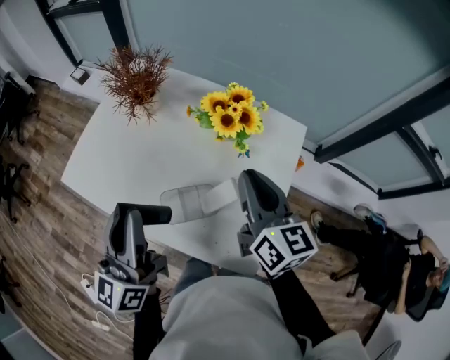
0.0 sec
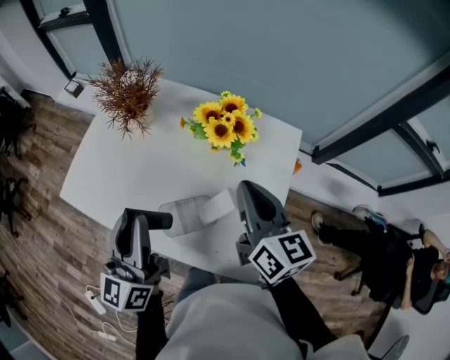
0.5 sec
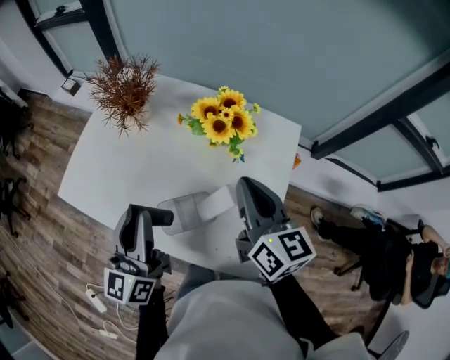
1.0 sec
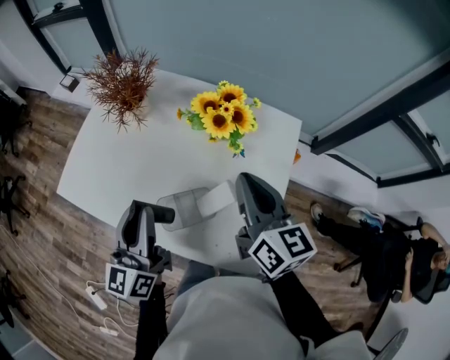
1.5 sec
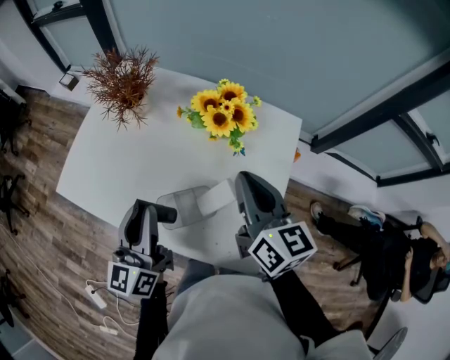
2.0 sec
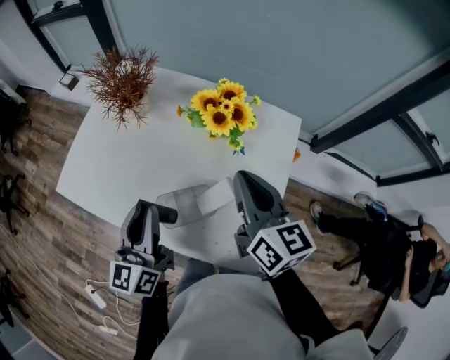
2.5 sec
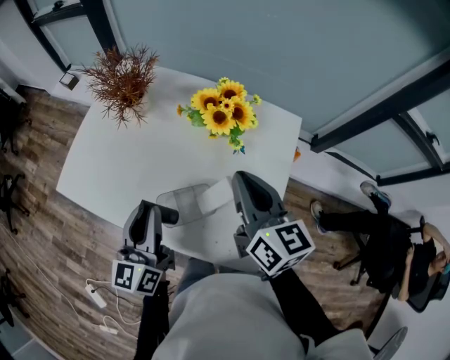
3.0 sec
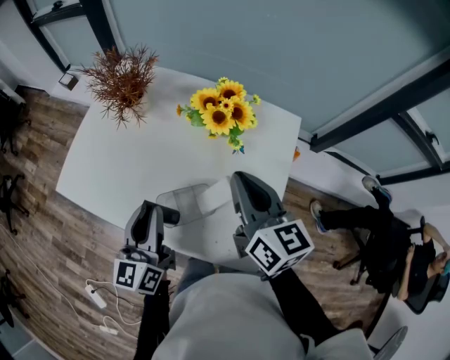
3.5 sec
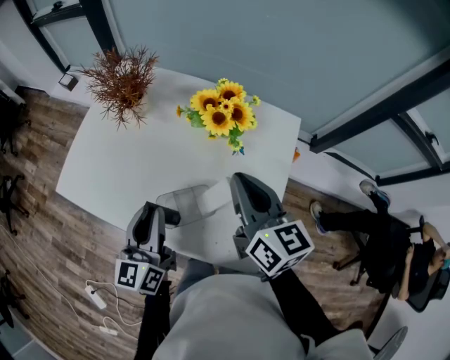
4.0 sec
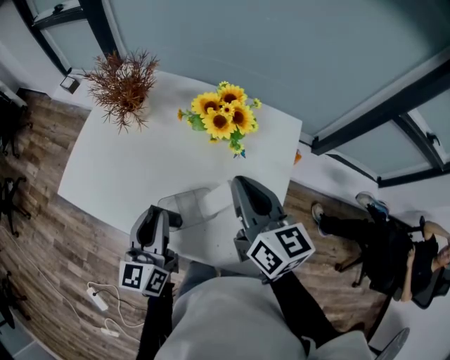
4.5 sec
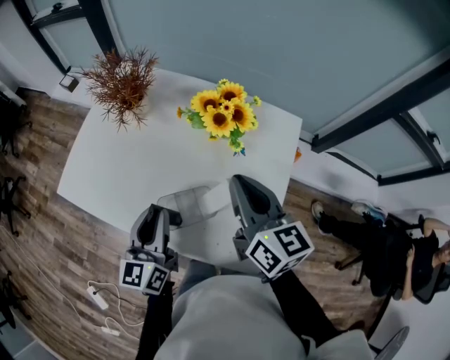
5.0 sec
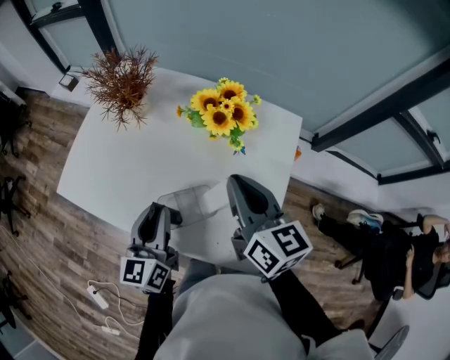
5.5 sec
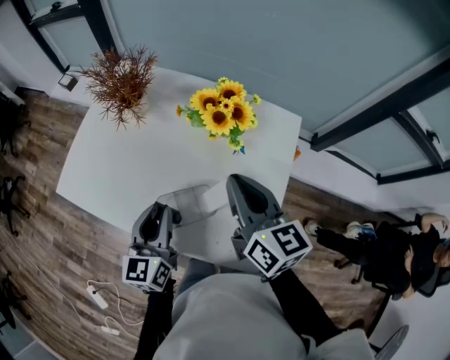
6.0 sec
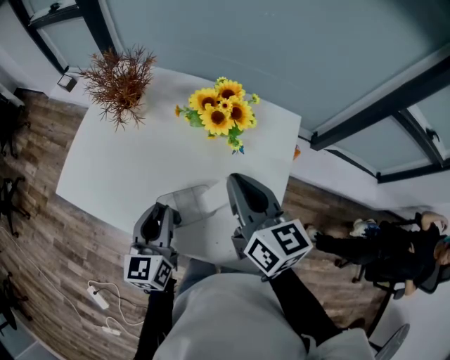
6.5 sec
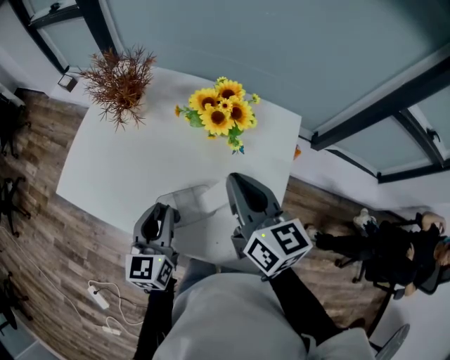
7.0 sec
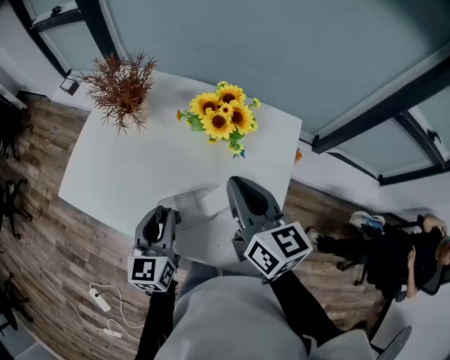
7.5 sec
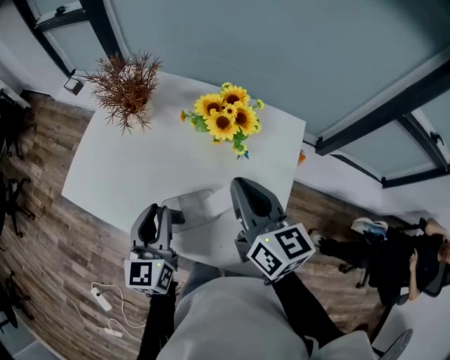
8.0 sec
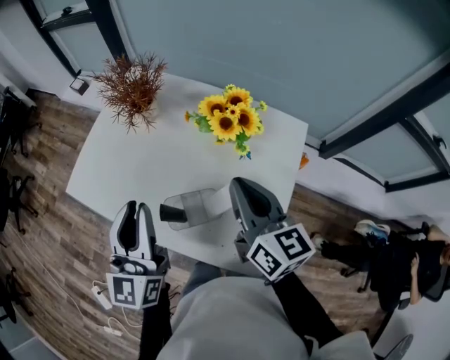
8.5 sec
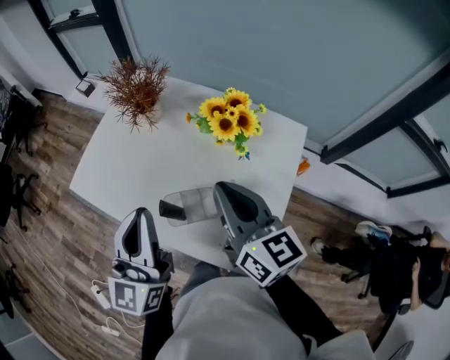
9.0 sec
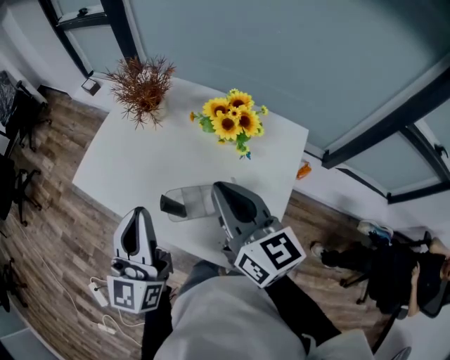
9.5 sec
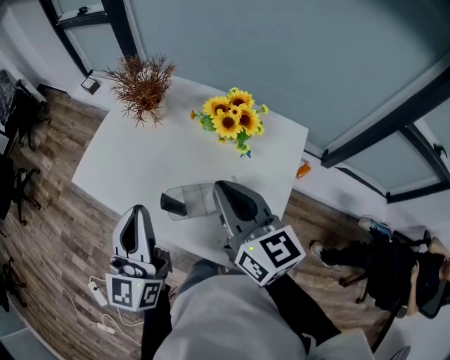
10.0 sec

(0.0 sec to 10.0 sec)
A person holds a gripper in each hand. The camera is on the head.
0.0 sec - 2.0 sec: The left gripper shifts roughly 10 cm downward.
2.0 sec - 4.0 sec: The grippers move only a little.
4.0 sec - 8.0 sec: The grippers stay close to where they were, moving slightly.
8.0 sec - 10.0 sec: The left gripper is displaced upward by some 15 cm, and turns by about 20 degrees; the right gripper shifts by some 5 cm.

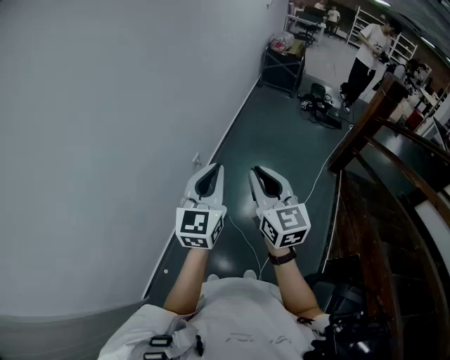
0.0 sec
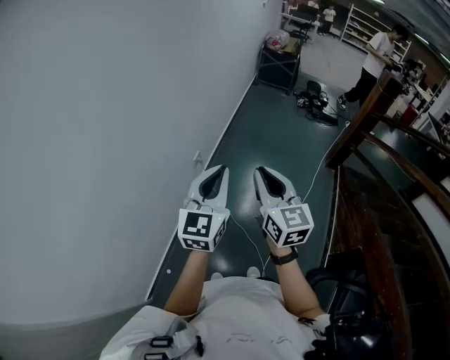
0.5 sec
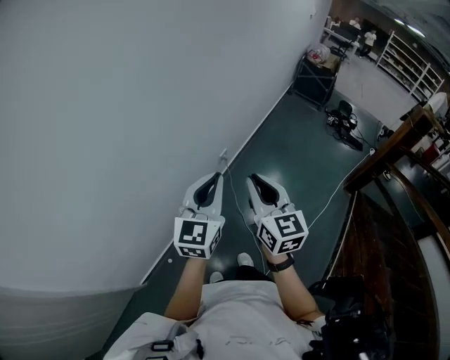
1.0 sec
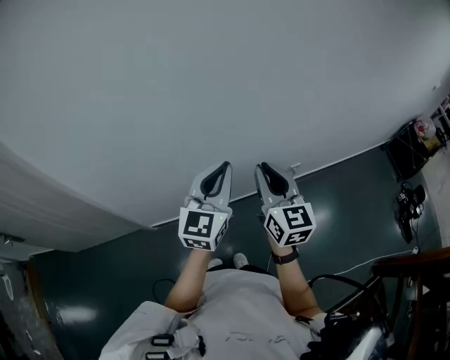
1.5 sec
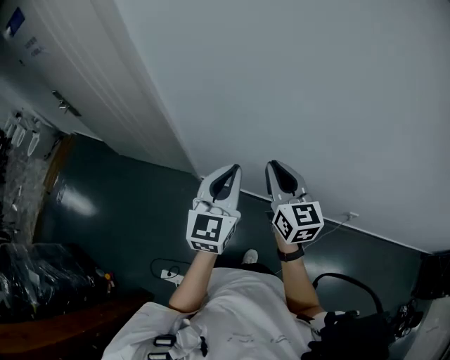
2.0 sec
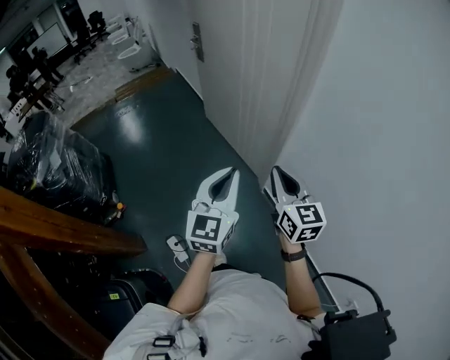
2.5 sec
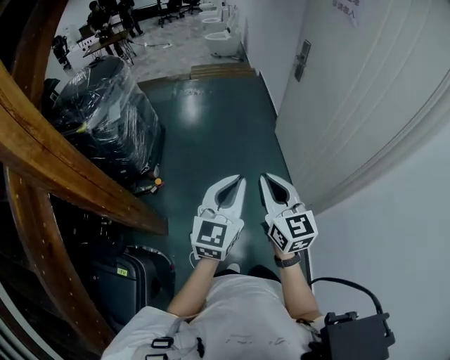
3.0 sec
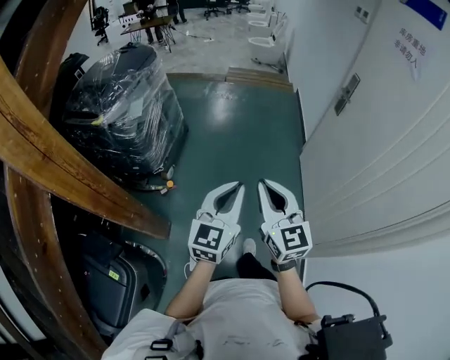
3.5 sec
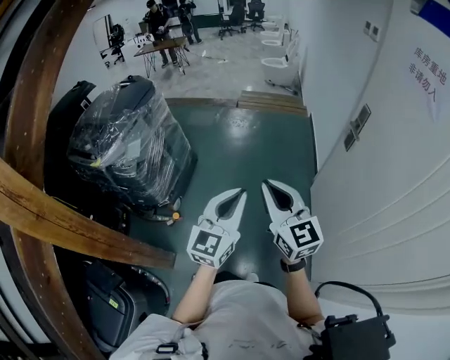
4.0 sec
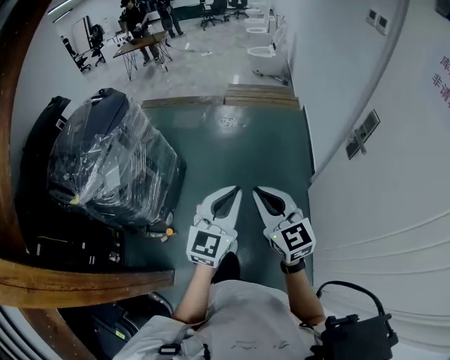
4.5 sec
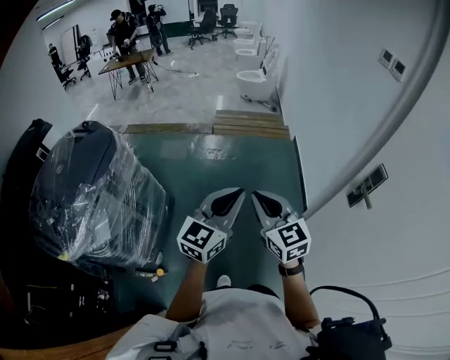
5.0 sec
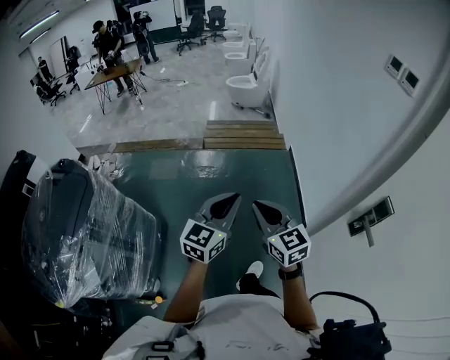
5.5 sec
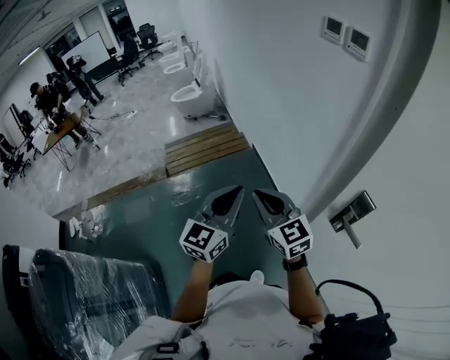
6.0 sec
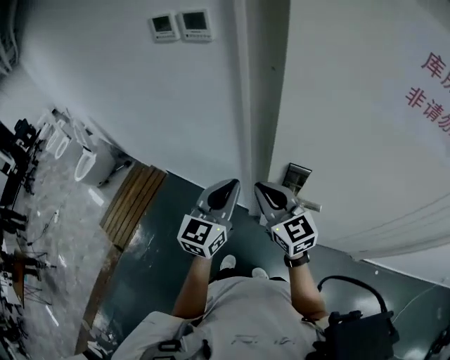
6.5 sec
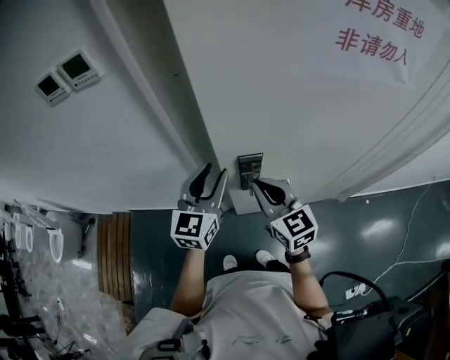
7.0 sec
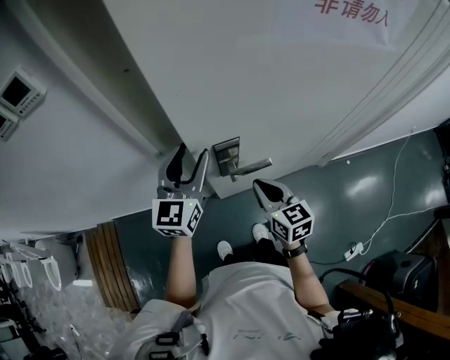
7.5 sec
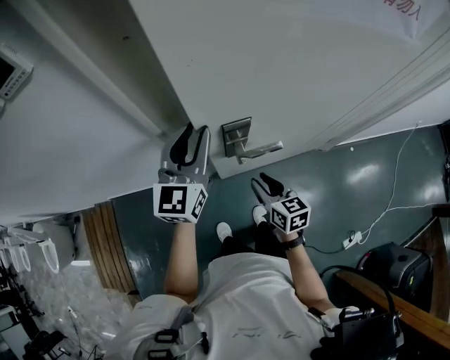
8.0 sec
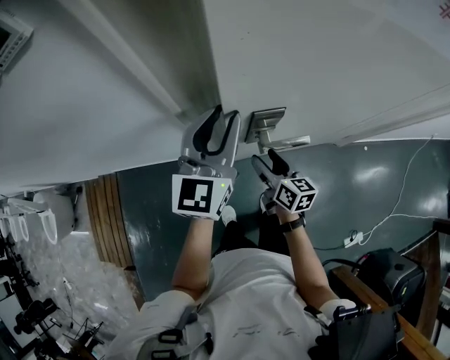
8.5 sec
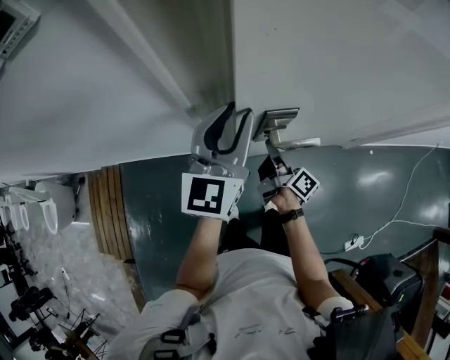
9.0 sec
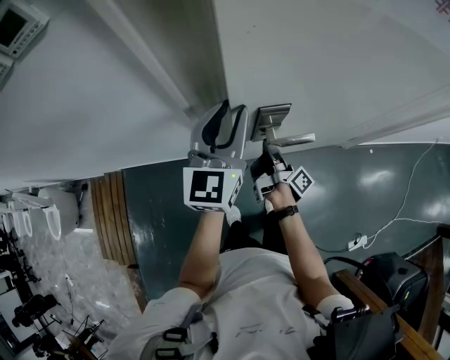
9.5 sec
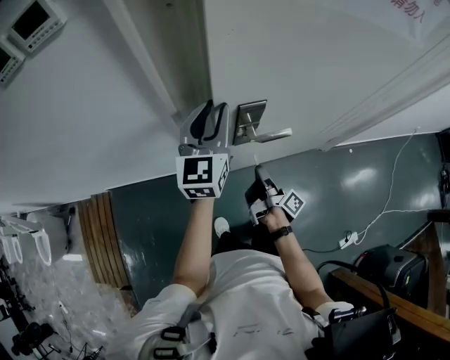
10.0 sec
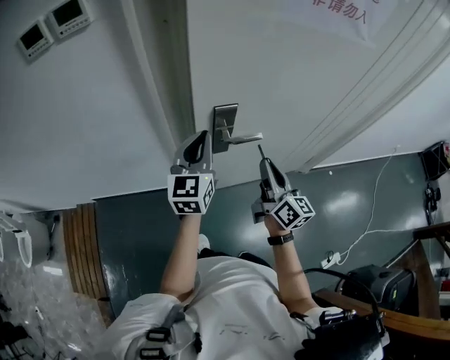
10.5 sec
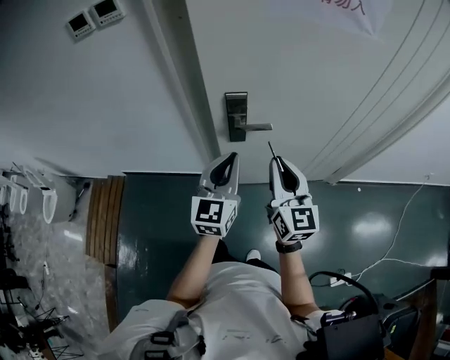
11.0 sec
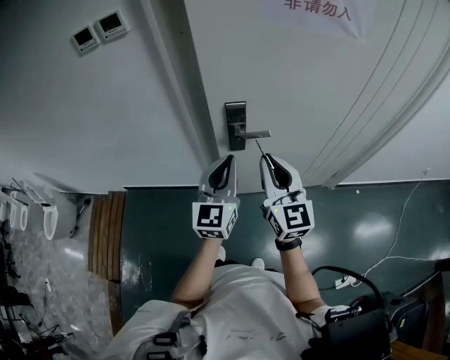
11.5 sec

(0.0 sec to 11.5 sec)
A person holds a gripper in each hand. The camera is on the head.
0.0 sec - 2.0 sec: The pair of grippers is taken roughly 40 cm. The left gripper swivels approximately 80 degrees. Meanwhile the right gripper swivels about 80 degrees.
2.0 sec - 4.0 sec: Both grippers are carried some 90 cm. The right gripper rotates approximately 90 degrees. Meanwhile the left gripper changes its angle by approximately 70 degrees.
4.0 sec - 6.0 sec: The two grippers travel together, some 70 cm. The left gripper swivels roughly 30 degrees. The right gripper swivels approximately 30 degrees.
6.0 sec - 7.5 sec: The left gripper ends up roughly 40 cm from where it was, changes its angle by about 60 degrees, and opens, while the right gripper shifts by about 35 cm, and turns by roughly 90 degrees.
7.5 sec - 9.5 sec: The right gripper travels downward and forward by about 15 cm, rotates around the line of its fingers by some 80 degrees, clockwise from behind, and opens, then closes again, while the left gripper closes.
9.5 sec - 11.5 sec: The right gripper shifts roughly 35 cm upward and backward, and rotates around the line of its fingers by roughly 100 degrees, counterclockwise from behind; the left gripper moves backward and to the right, about 25 cm, and closes up.

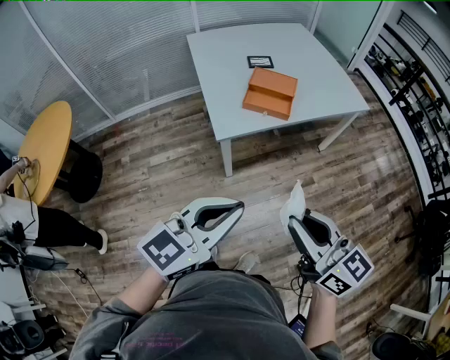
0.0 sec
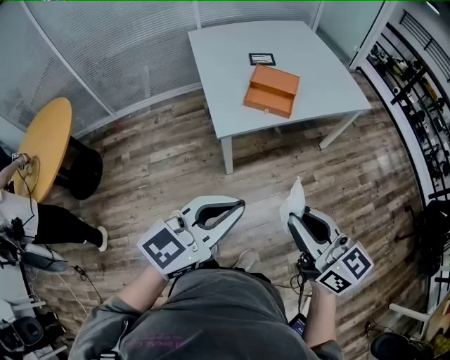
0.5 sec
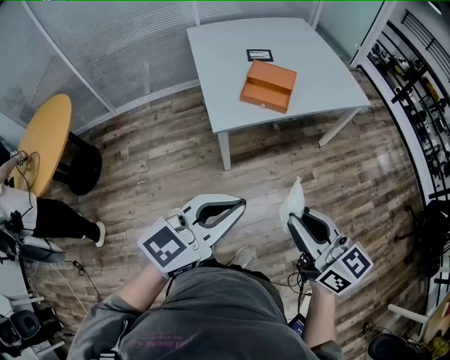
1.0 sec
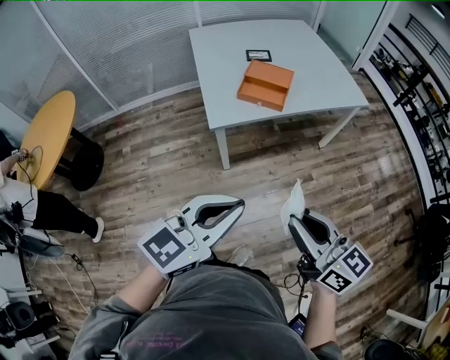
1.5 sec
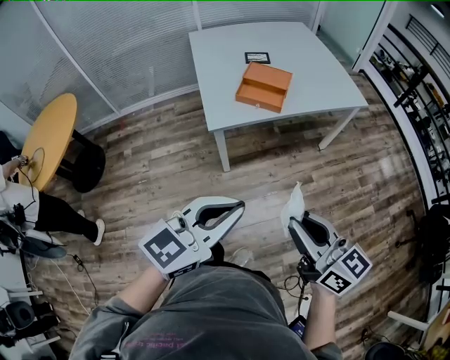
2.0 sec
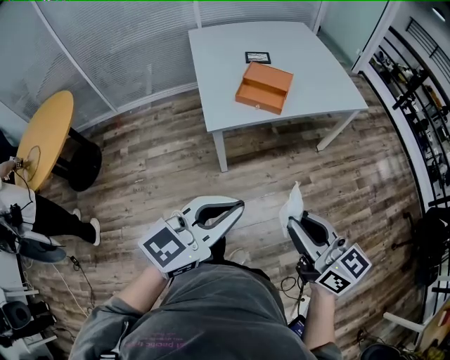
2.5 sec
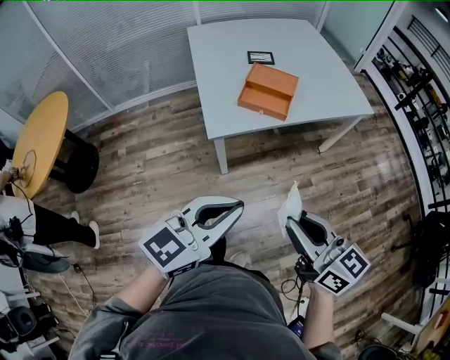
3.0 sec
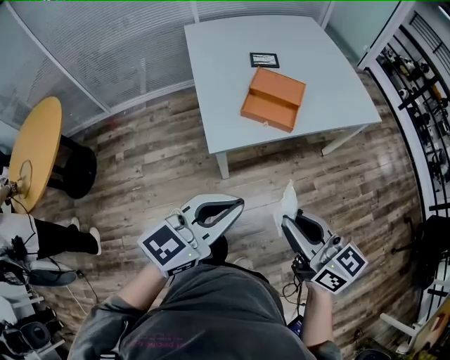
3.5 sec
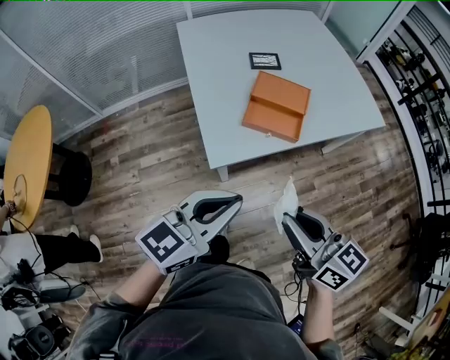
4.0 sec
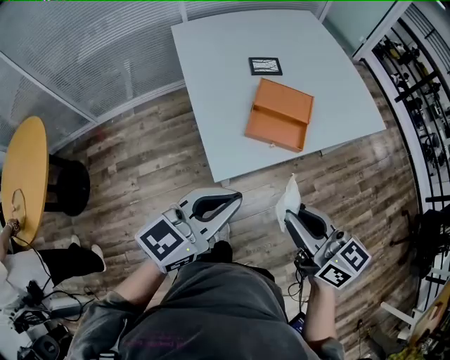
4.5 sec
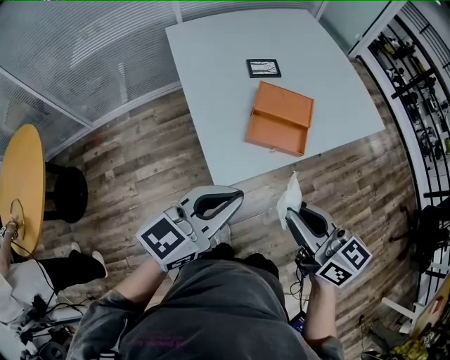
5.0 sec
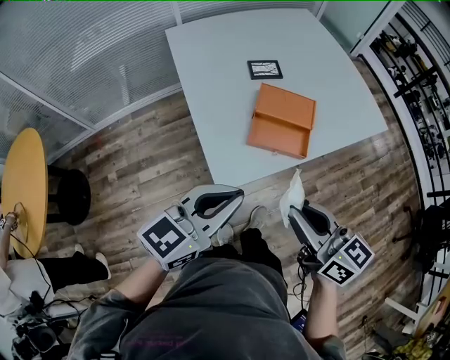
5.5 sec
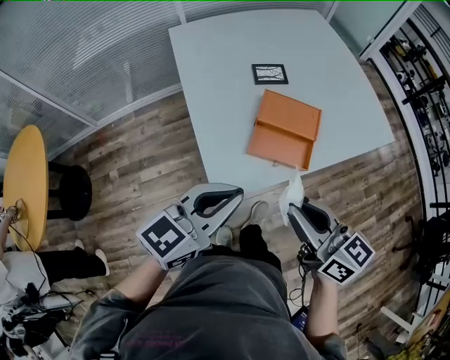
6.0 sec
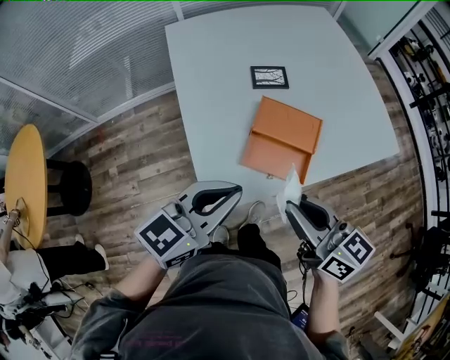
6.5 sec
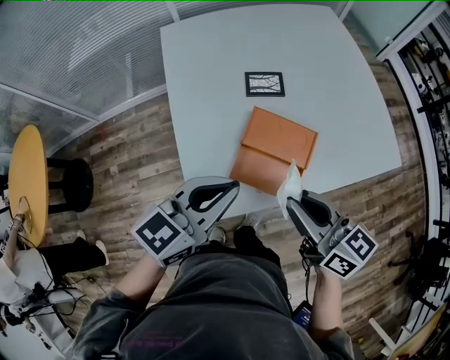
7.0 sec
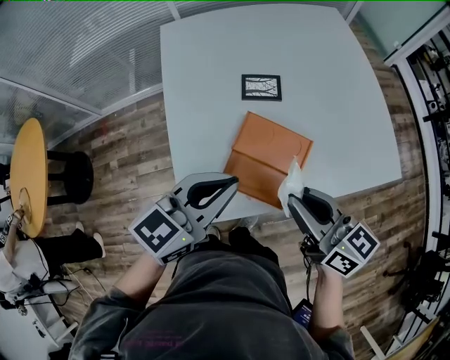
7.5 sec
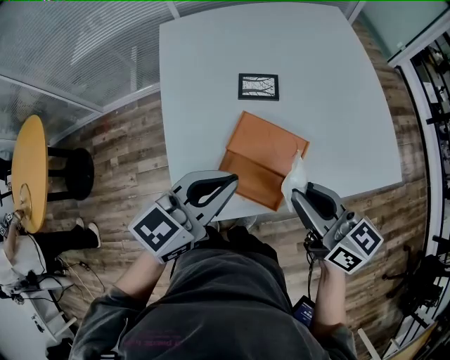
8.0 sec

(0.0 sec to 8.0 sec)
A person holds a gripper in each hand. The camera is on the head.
0.0 sec - 2.0 sec: Both grippers travel together to the right, roughly 10 cm.
2.0 sec - 4.0 sec: The right gripper travels forward and to the left by about 30 cm. Meanwhile the left gripper moves forward, about 25 cm.
4.0 sec - 6.0 sec: The grippers both shift forward by approximately 15 cm.
6.0 sec - 8.0 sec: The two grippers go approximately 25 cm forward and to the right.
